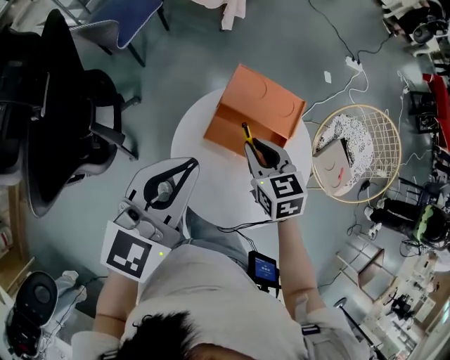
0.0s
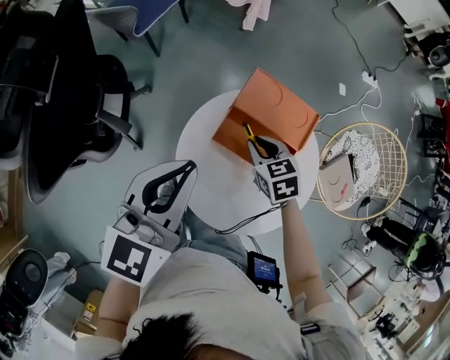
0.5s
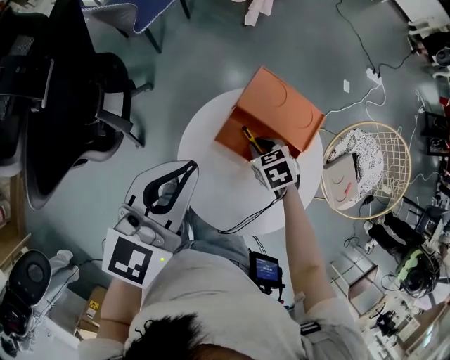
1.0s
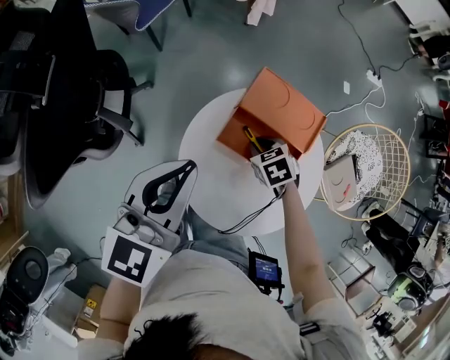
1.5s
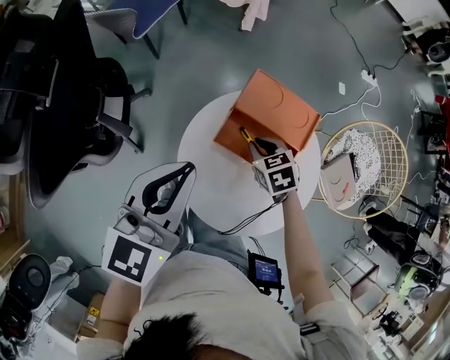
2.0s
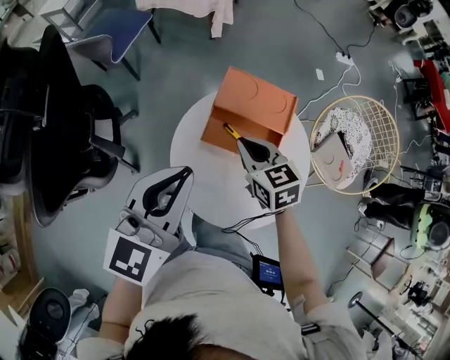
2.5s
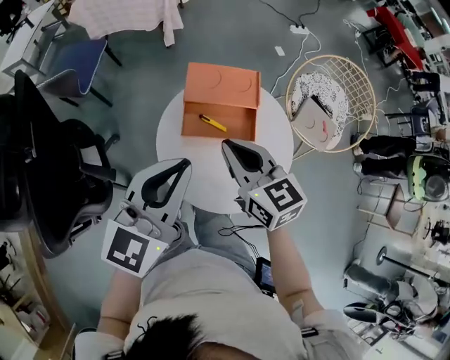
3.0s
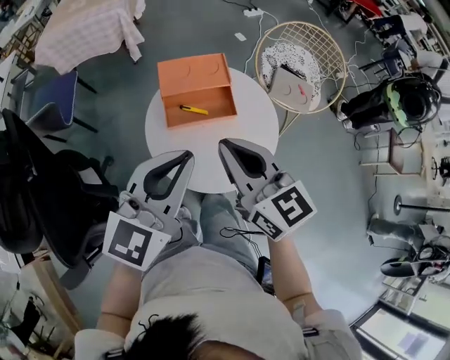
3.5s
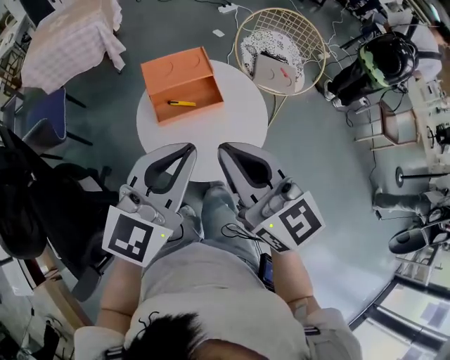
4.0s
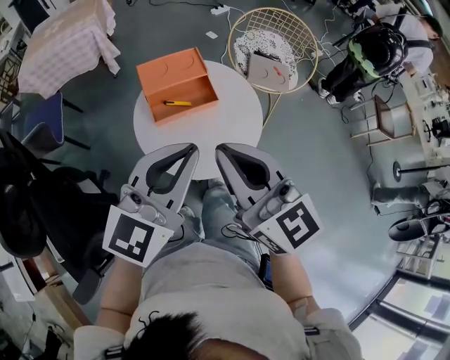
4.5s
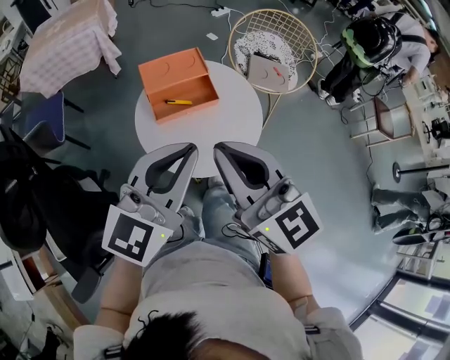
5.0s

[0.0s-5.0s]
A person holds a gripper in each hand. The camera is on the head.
0.0s to 2.5s: The right gripper reaches about 15 cm downward, then returns.
2.5s to 5.0s: The left gripper changes place by about 15 cm, and swivels about 40 degrees. Meanwhile the right gripper shifts about 25 cm upward, and points its fingers some 40 degrees further upward.

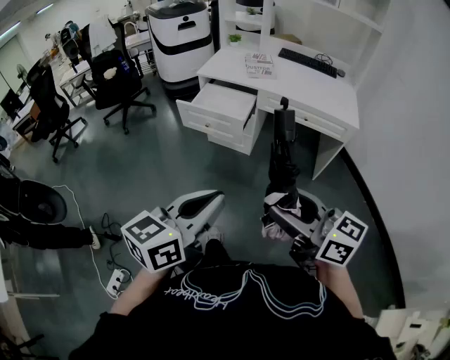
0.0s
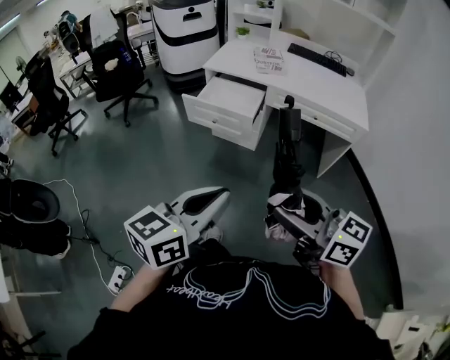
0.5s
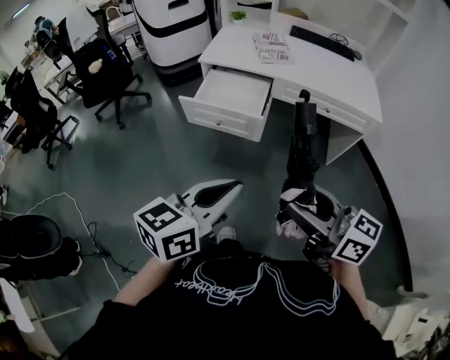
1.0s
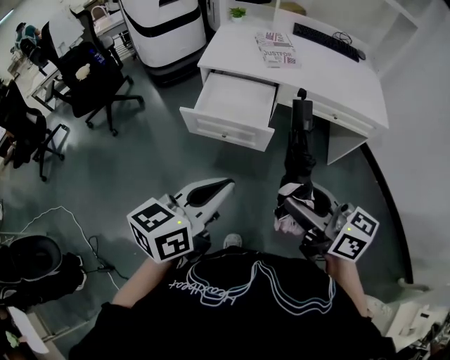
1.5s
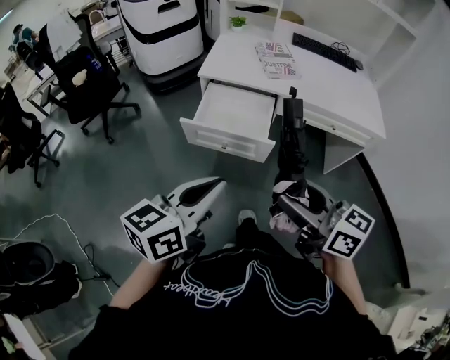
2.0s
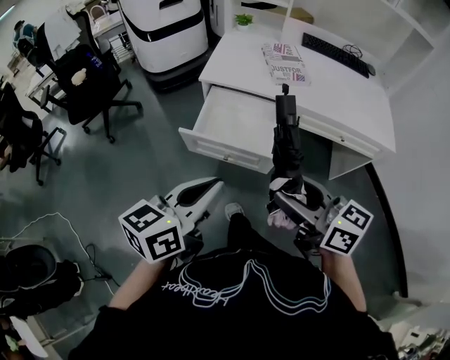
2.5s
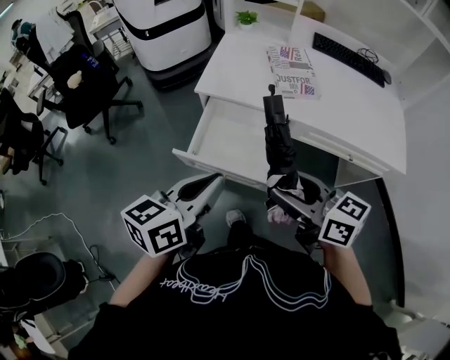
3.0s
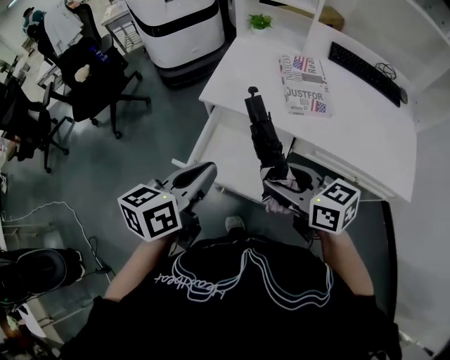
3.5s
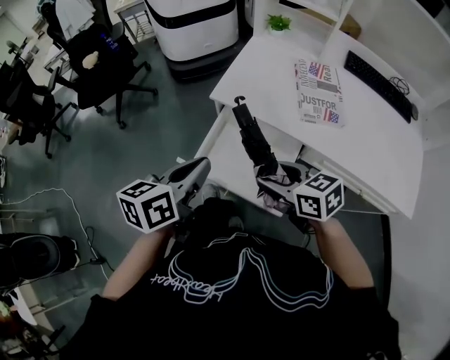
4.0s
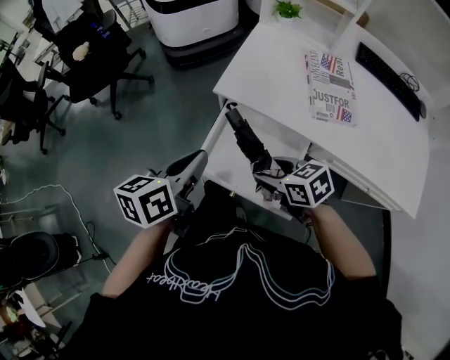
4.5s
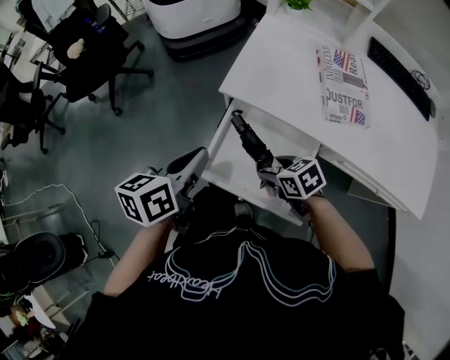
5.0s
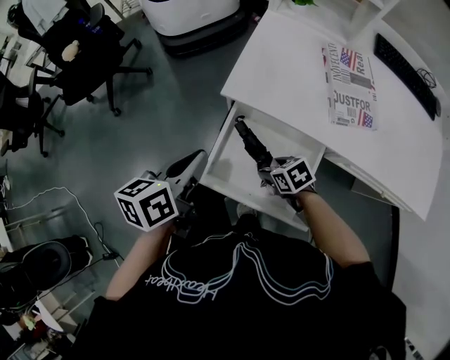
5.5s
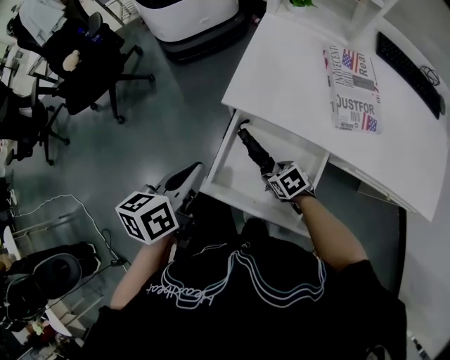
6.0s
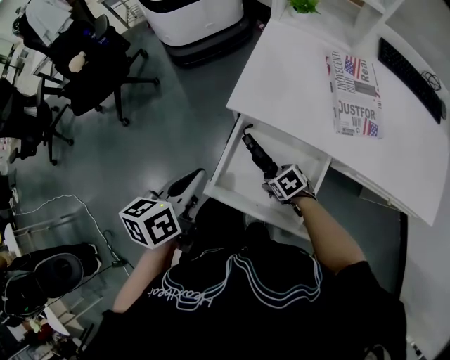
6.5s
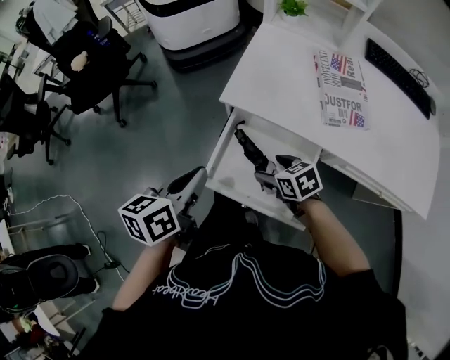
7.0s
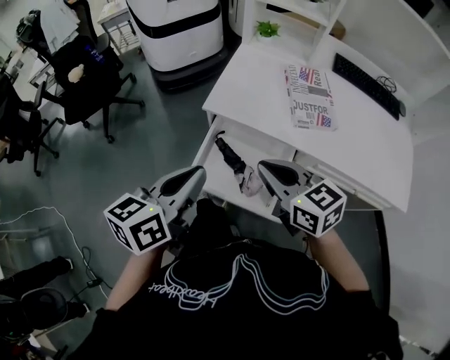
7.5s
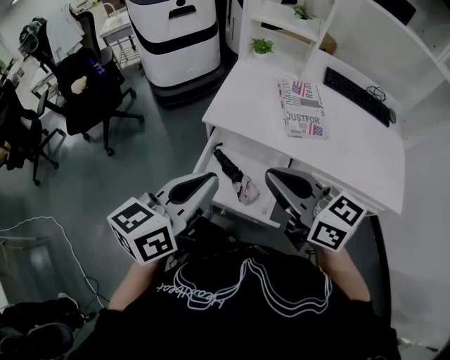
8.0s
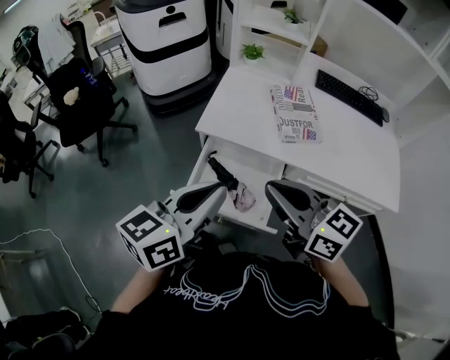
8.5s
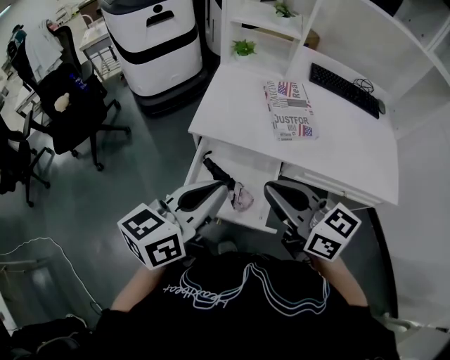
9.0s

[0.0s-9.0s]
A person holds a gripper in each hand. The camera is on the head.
0.0s to 2.0s: The two grippers go roughly 30 cm forward and to the left.
2.0s to 4.5s: The right gripper moves forward and downward, approximately 40 cm, and tips its fingers downward by about 40 degrees; the left gripper shifts roughly 35 cm forward, and changes its angle by some 30 degrees.
4.5s to 7.0s: The right gripper shifts roughly 10 cm downward.
7.0s to 9.0s: The right gripper moves upward, about 30 cm, tips its fingers upward by approximately 40 degrees, and closes. The left gripper moves upward and to the right, roughly 20 cm, and rotates approximately 30 degrees.

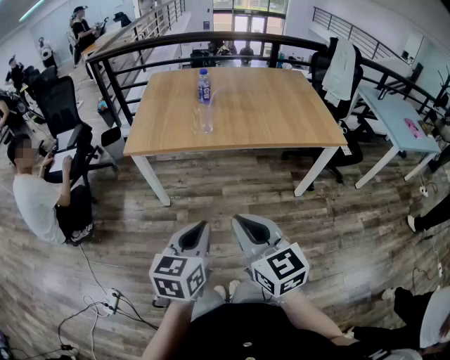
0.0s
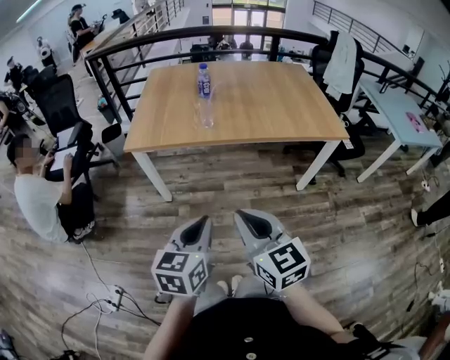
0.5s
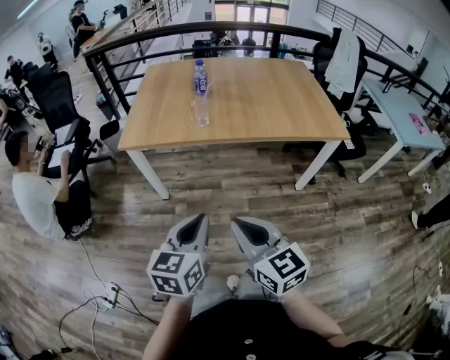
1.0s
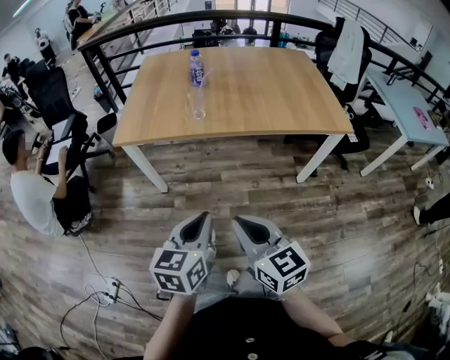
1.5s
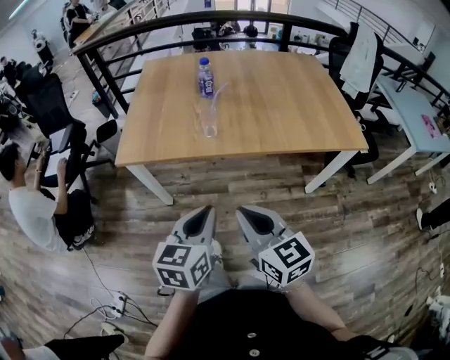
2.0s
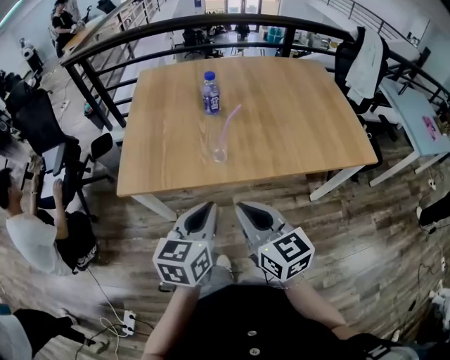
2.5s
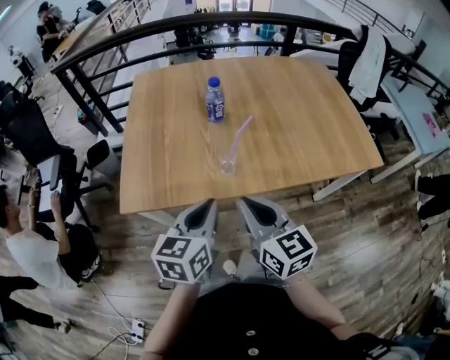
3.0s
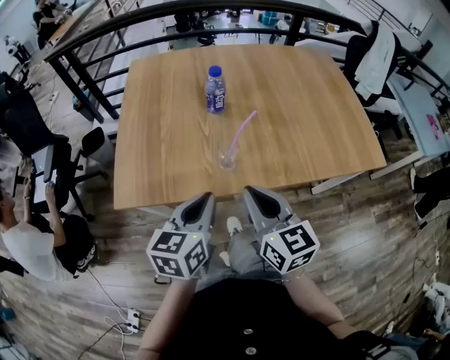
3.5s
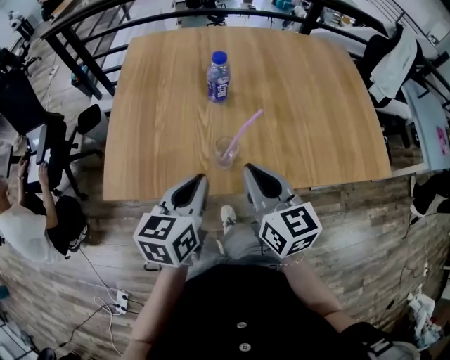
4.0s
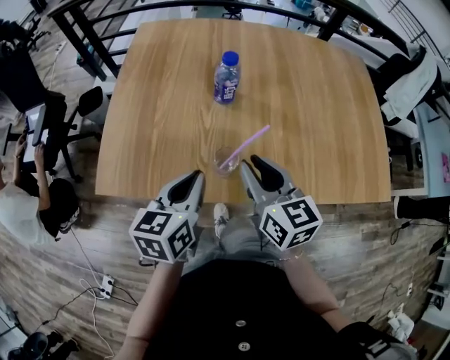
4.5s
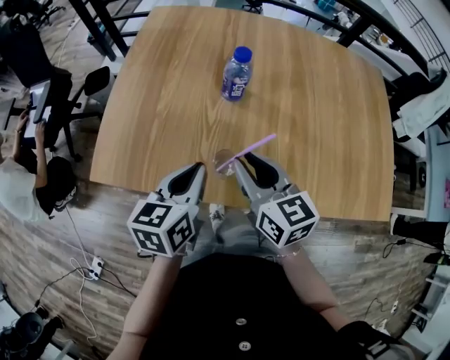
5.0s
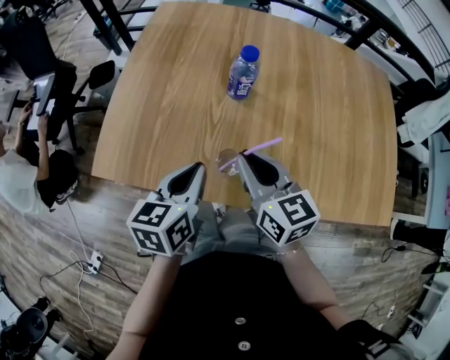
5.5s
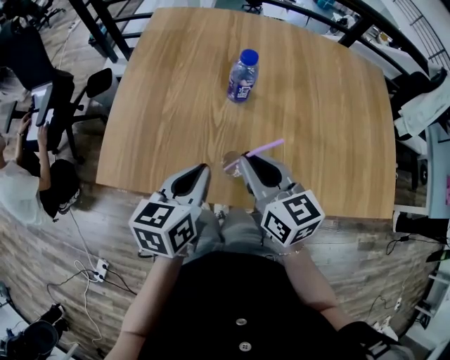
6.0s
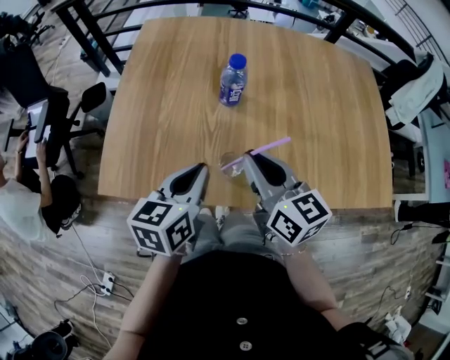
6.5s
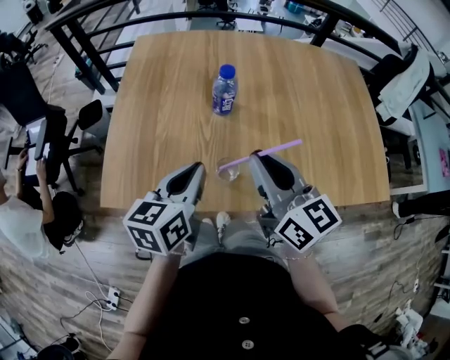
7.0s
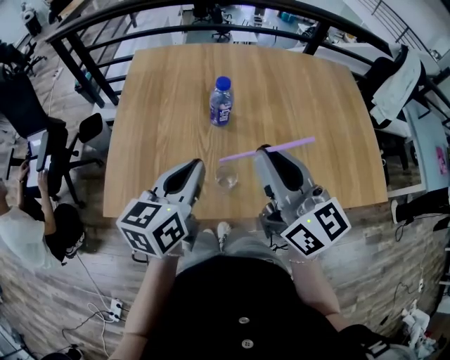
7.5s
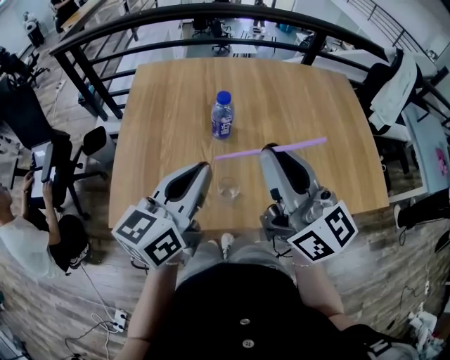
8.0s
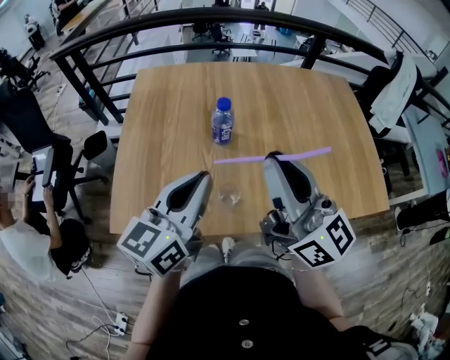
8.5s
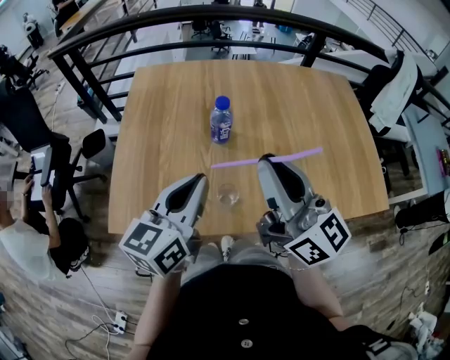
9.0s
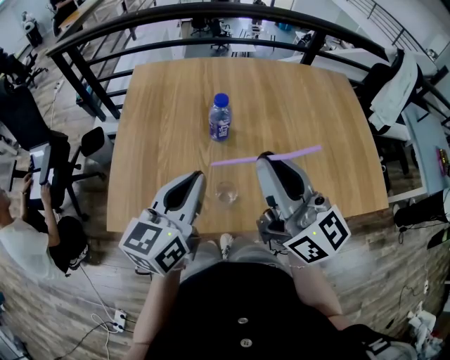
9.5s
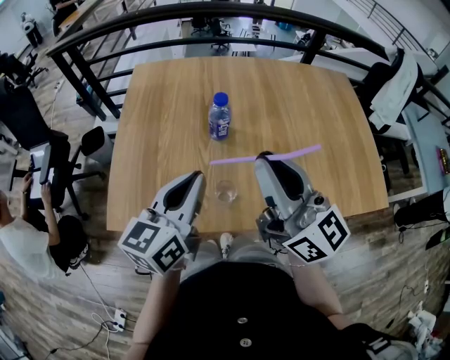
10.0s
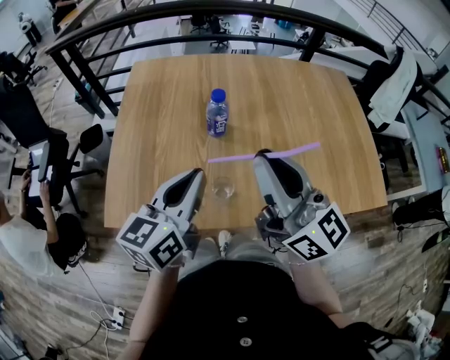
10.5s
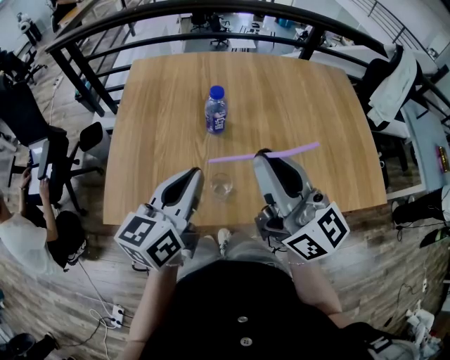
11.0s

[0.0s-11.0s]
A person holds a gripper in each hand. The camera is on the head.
0.0s to 2.0s: Both grippers move forward, about 20 cm.
2.0s to 3.5s: Both grippers travel together forward, approximately 25 cm.
3.5s to 5.5s: The left gripper travels forward and downward by approximately 15 cm. Meanwhile the right gripper goes approximately 20 cm forward.
5.5s to 7.5s: The right gripper heads upward, covering some 15 cm, and turns by about 30 degrees. The left gripper is displaced upward by some 10 cm.
9.0s to 11.0s: Neither gripper changes place.

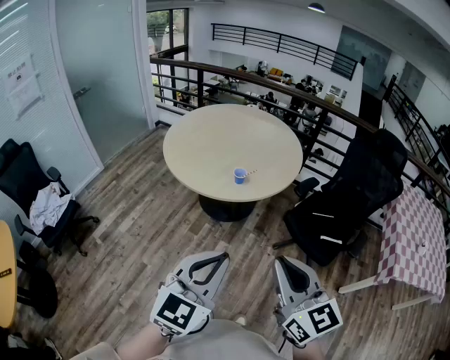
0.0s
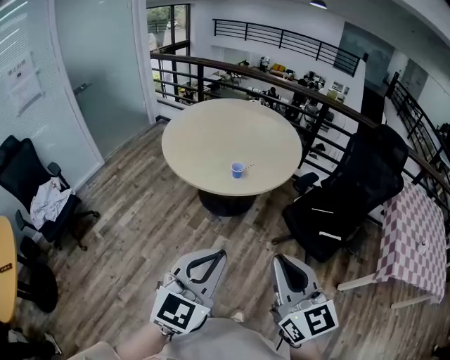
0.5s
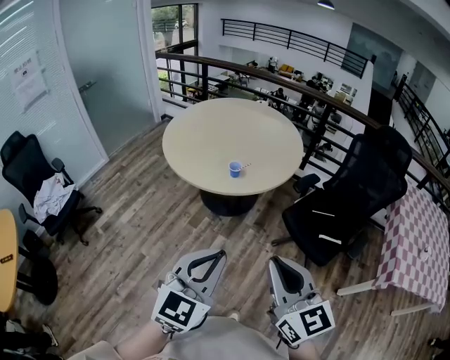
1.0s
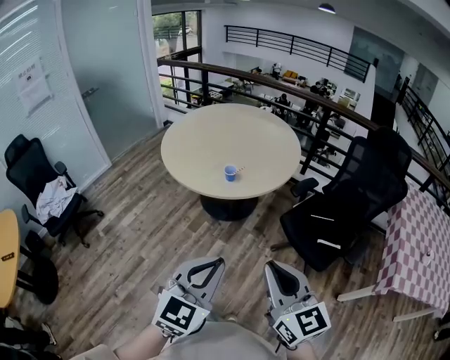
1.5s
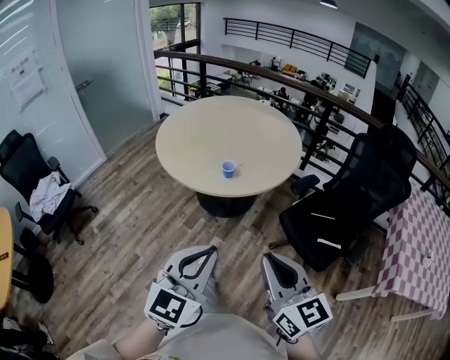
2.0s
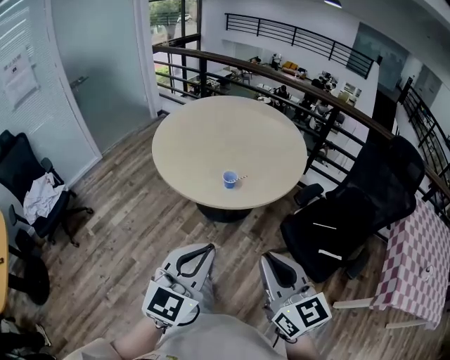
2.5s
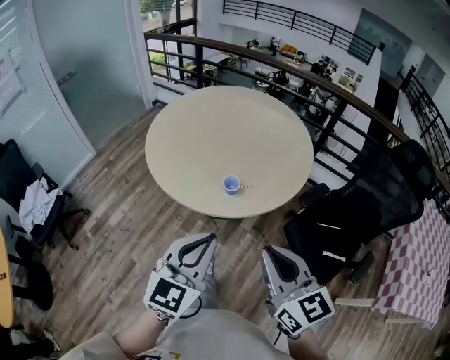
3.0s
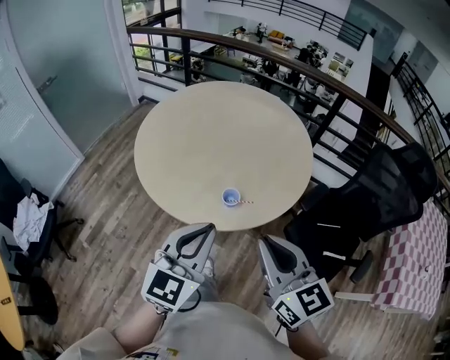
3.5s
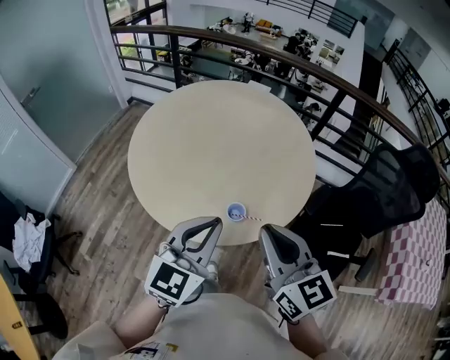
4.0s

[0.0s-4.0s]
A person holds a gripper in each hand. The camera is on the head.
0.0s to 2.0s: Both grippers move to the right and downward, roughly 10 cm.
2.0s to 4.0s: The two grippers travel together, forward, roughly 40 cm.
